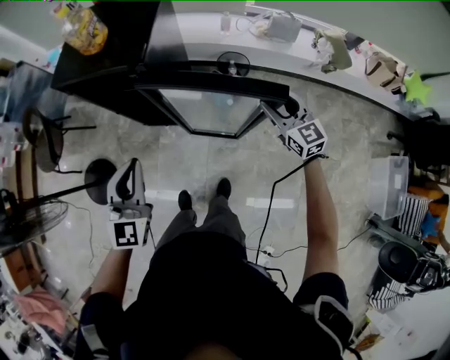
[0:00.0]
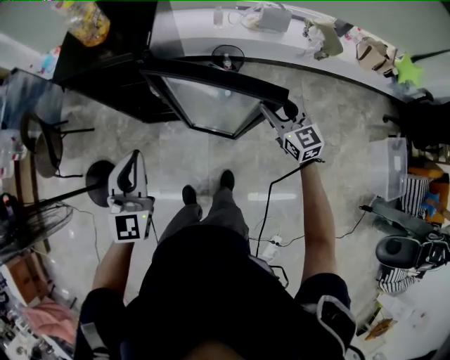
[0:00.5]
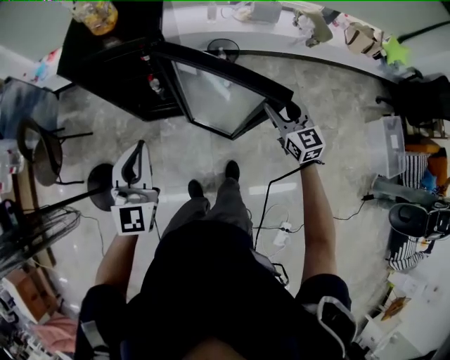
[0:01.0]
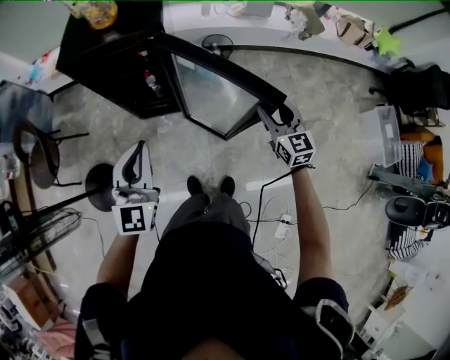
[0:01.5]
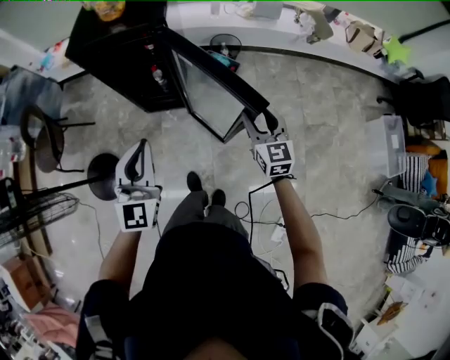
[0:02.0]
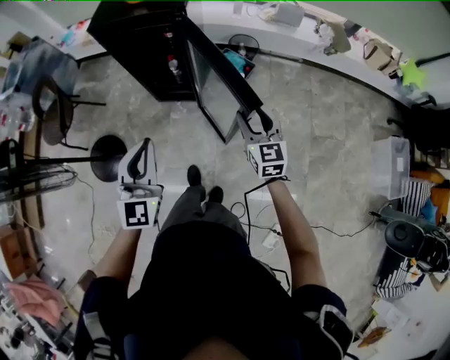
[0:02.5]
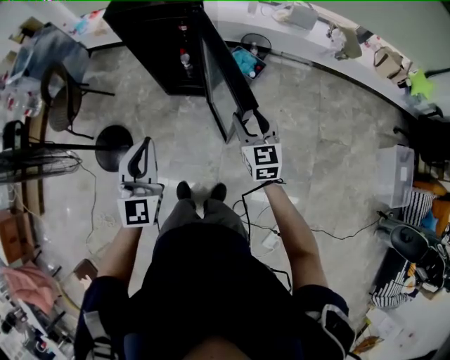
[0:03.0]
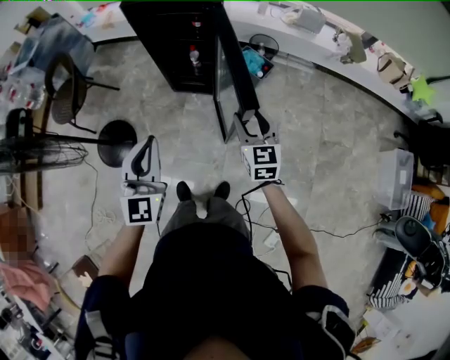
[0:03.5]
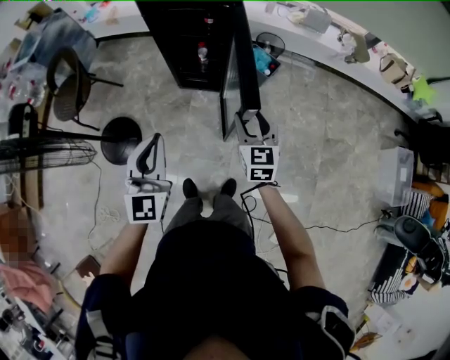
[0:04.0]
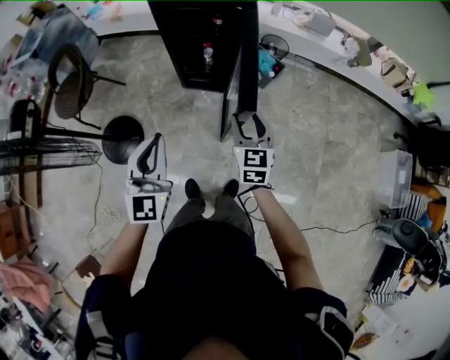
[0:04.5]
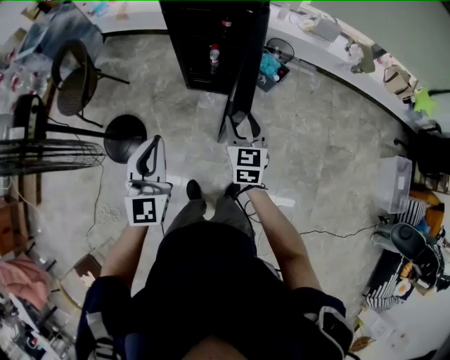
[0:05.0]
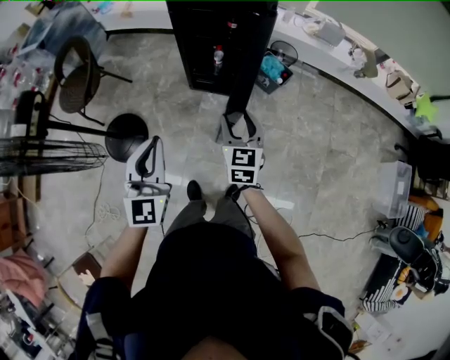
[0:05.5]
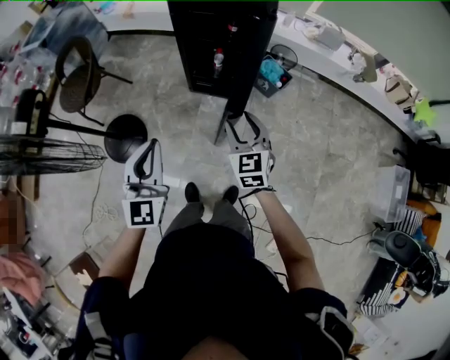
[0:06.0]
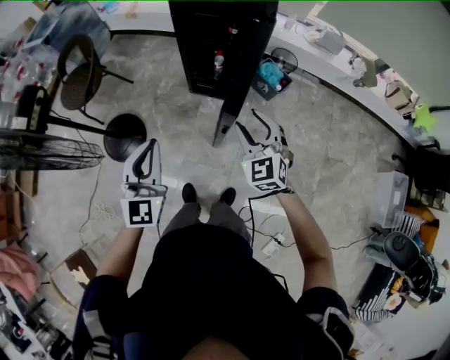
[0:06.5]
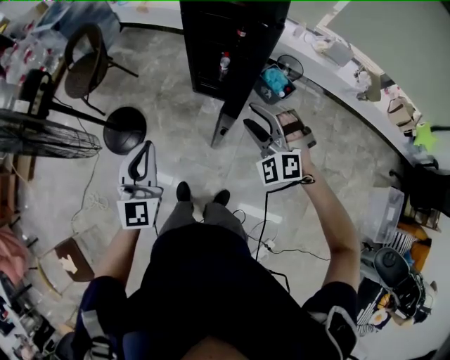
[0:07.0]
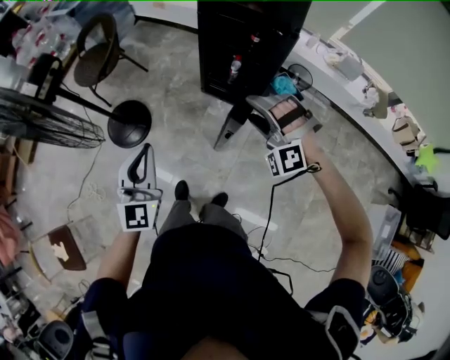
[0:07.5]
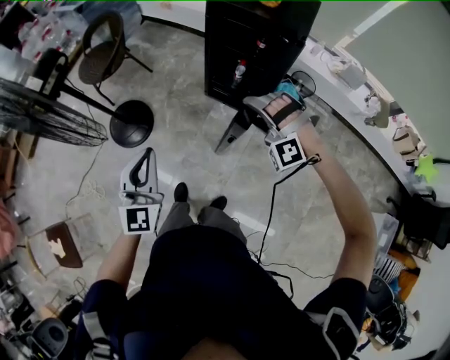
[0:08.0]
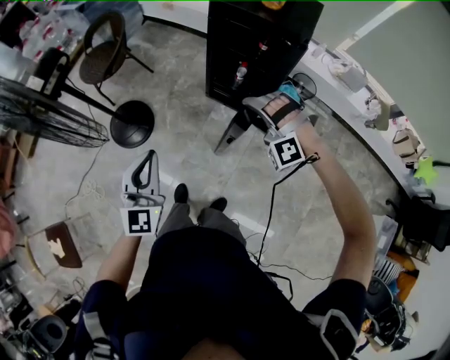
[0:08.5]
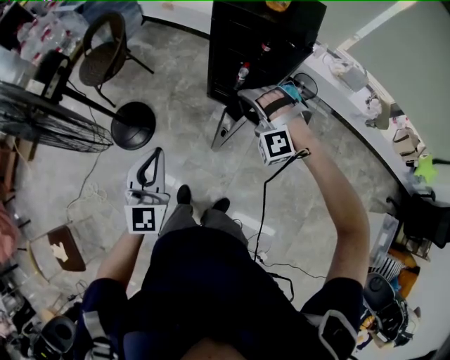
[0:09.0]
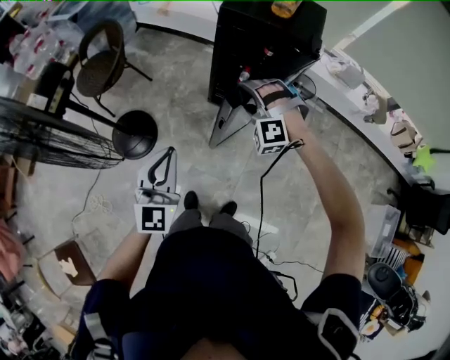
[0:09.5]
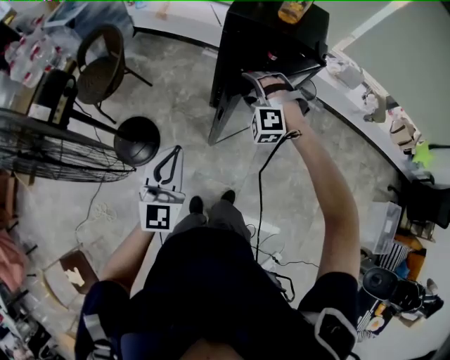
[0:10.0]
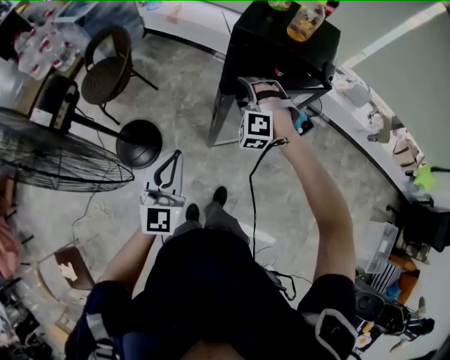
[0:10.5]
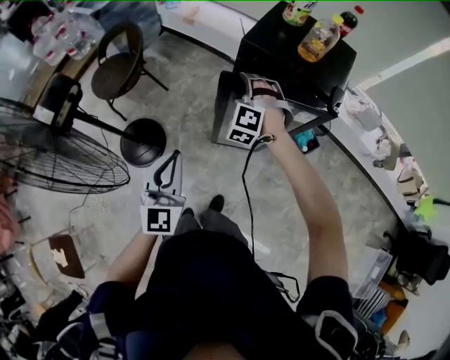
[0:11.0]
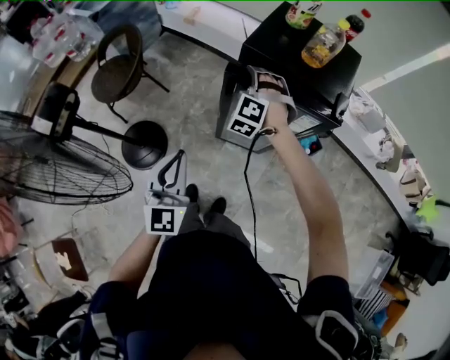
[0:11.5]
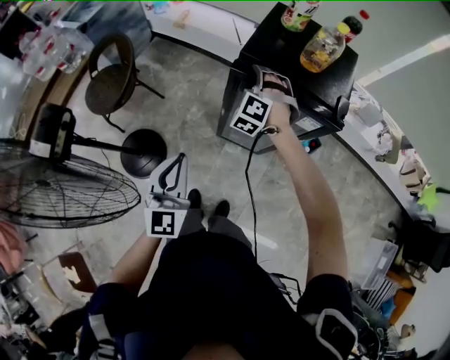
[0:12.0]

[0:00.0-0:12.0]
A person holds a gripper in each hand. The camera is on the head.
0:00.0 to 0:02.0: The left gripper heads backward and to the left, covering roughly 15 cm. The right gripper is displaced backward and to the left by about 25 cm, and rotates roughly 20 degrees.
0:02.0 to 0:04.0: The right gripper travels to the left by about 20 cm, while the left gripper goes about 20 cm to the left and backward.
0:04.0 to 0:06.0: Both grippers travel together to the left, roughly 10 cm.
0:06.0 to 0:08.0: The right gripper rotates around the line of its fingers by roughly 100 degrees, counterclockwise from behind, and opens.
0:08.0 to 0:10.0: The right gripper travels forward and to the left by approximately 20 cm, and changes its angle by approximately 20 degrees; the left gripper shifts roughly 15 cm forward and to the left.
0:10.0 to 0:12.0: Both grippers travel together forward, approximately 20 cm. The right gripper rotates roughly 20 degrees.

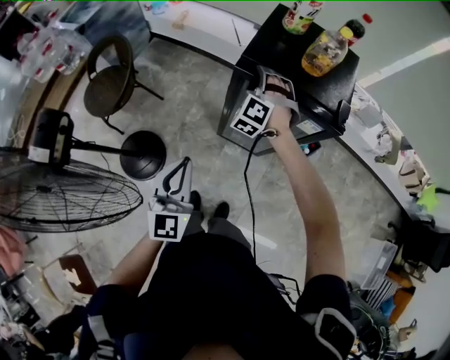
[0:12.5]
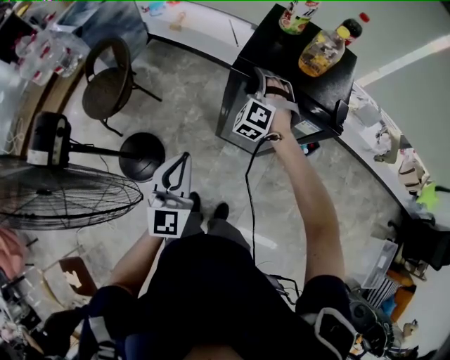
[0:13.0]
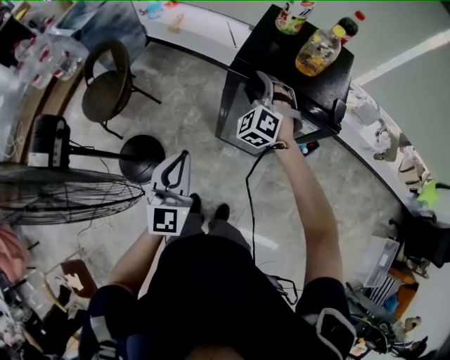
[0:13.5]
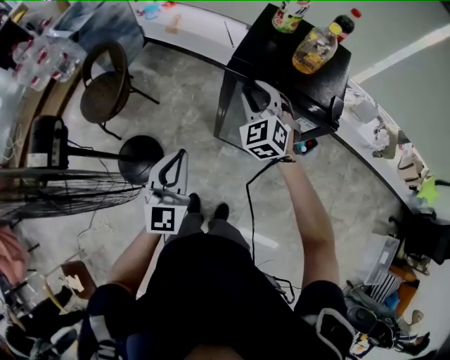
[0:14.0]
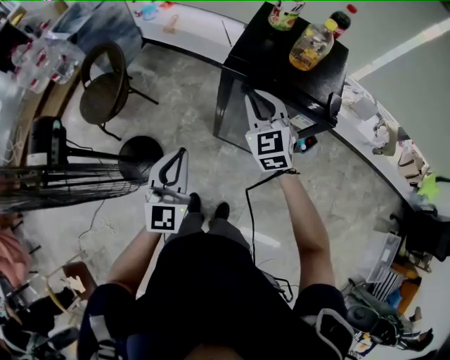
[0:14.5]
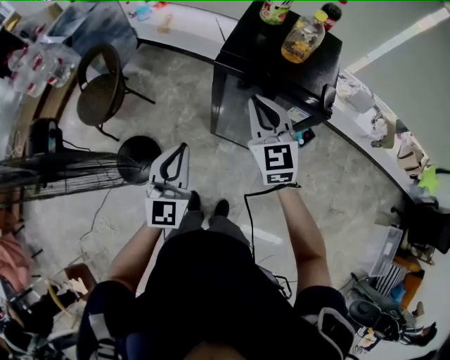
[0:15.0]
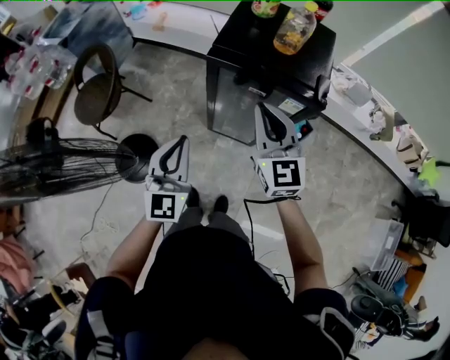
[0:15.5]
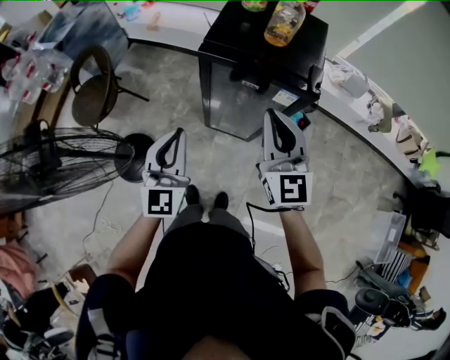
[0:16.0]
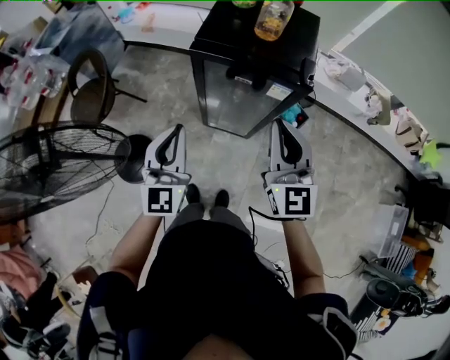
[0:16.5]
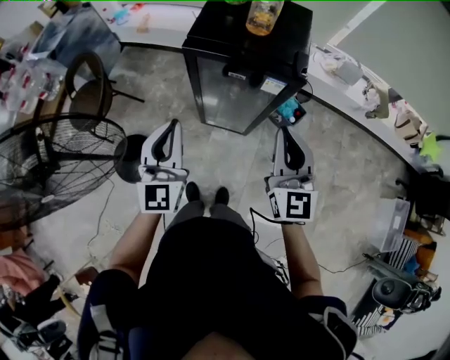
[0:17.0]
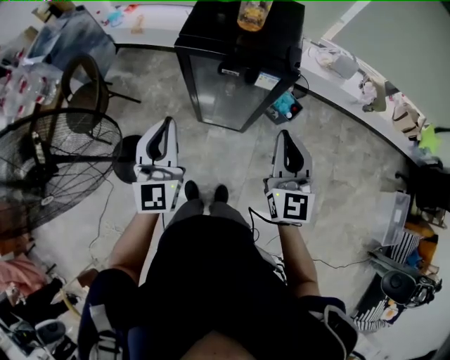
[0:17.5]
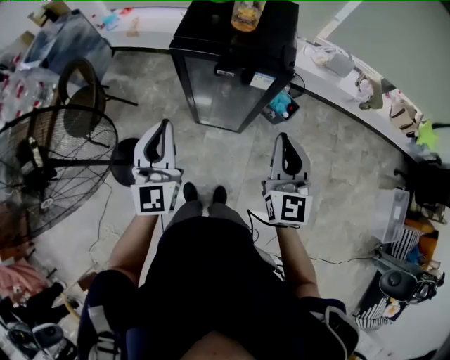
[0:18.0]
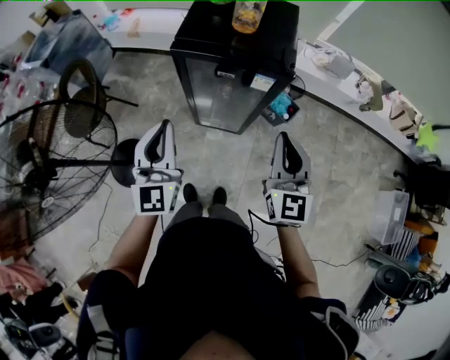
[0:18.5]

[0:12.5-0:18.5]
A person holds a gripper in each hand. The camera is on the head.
0:12.5 to 0:14.5: The right gripper moves backward and upward, about 15 cm, twists about 40 degrees clockwise, seen from behind, and closes up.
0:14.5 to 0:16.5: The right gripper moves backward, to the right and upward, roughly 25 cm, and rotates approximately 30 degrees, while the left gripper shifts approximately 5 cm to the right.
0:16.5 to 0:18.5: The right gripper shifts some 5 cm to the right.

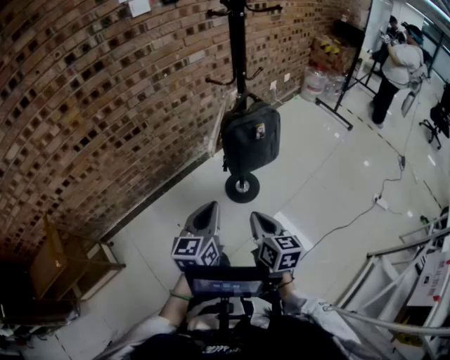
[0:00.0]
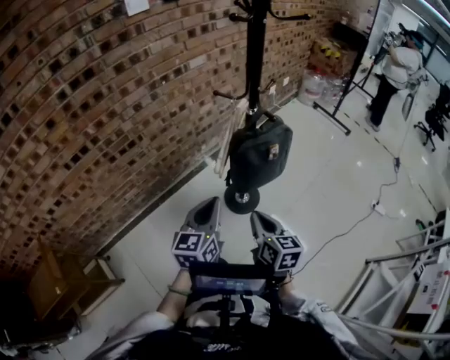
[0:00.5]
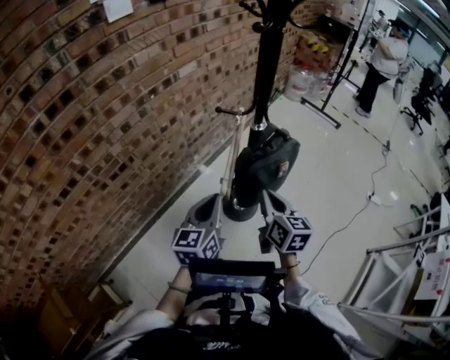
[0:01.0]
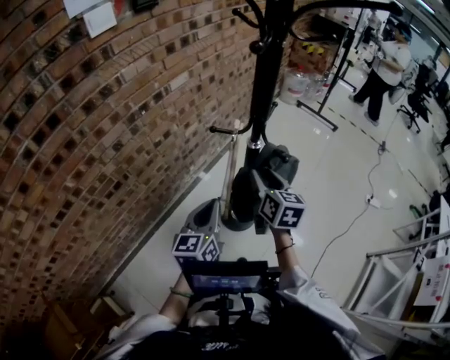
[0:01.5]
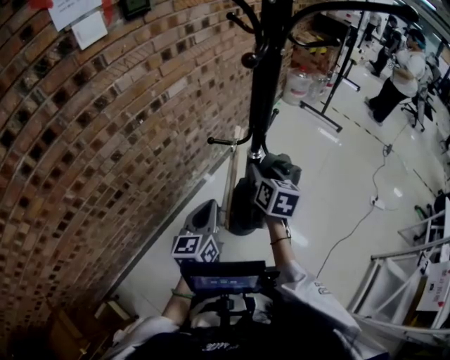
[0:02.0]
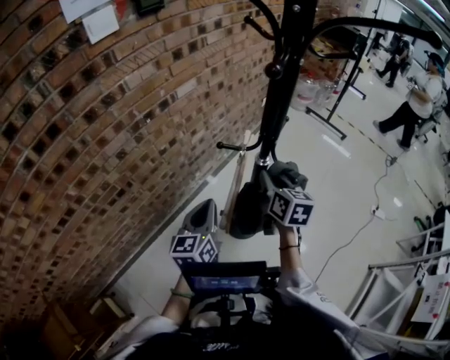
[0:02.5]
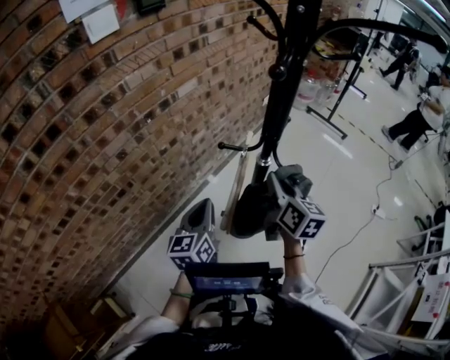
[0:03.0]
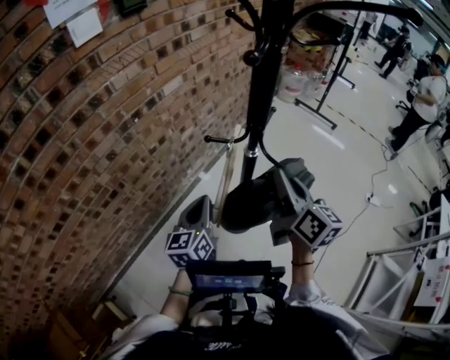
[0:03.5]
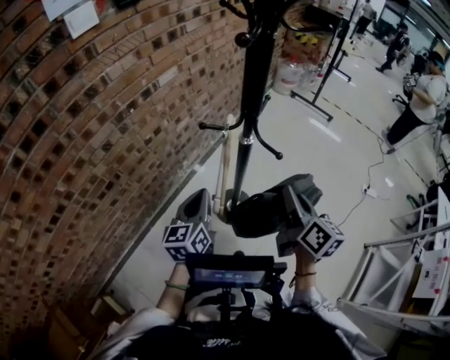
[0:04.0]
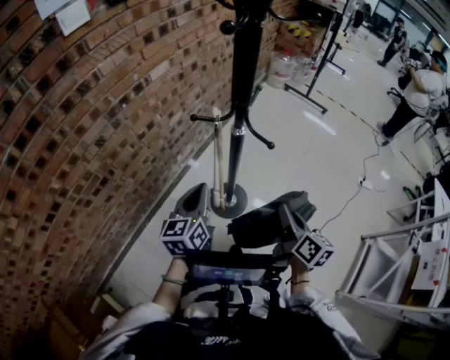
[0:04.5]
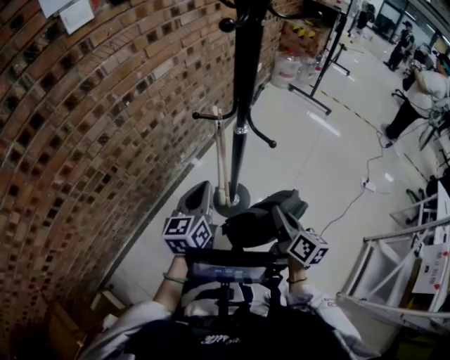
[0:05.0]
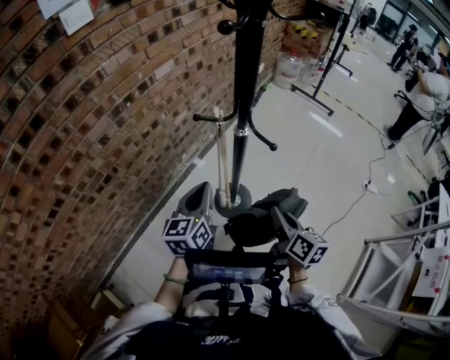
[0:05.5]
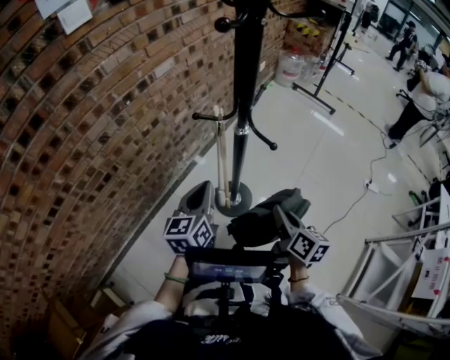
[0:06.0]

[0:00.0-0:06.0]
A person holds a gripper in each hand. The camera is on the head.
0:00.0 to 0:02.0: The two grippers go approximately 35 cm forward. The right gripper turns by approximately 20 degrees, and opens its fingers.
0:02.0 to 0:04.0: The right gripper shifts some 15 cm backward and to the right, rotates some 20 degrees, and closes up.
0:04.0 to 0:06.0: The right gripper heads downward, covering roughly 10 cm.

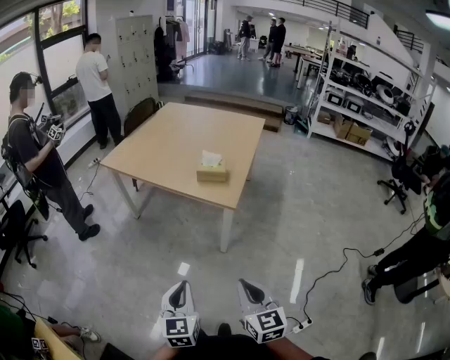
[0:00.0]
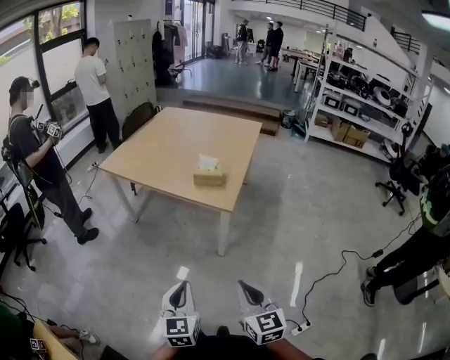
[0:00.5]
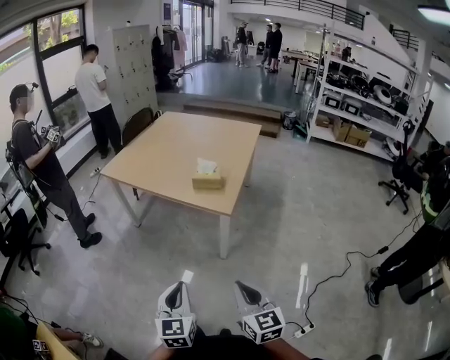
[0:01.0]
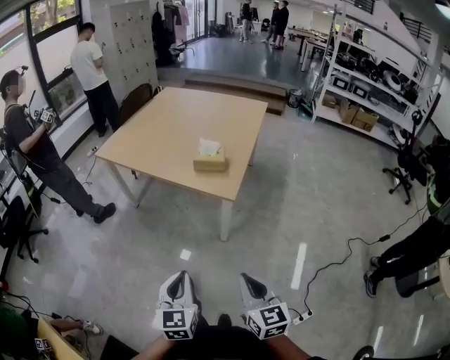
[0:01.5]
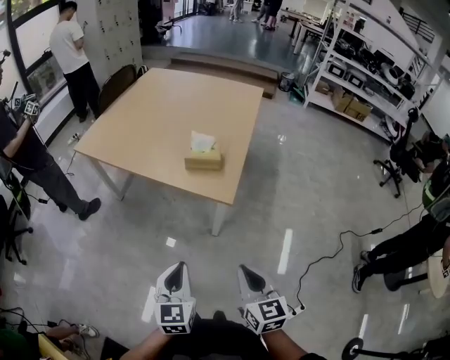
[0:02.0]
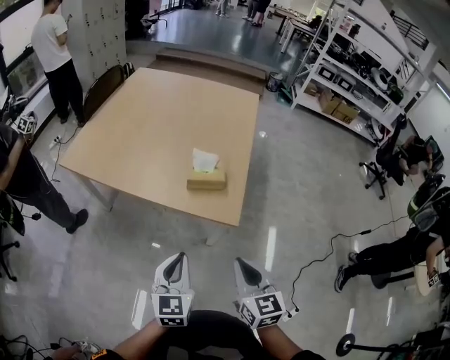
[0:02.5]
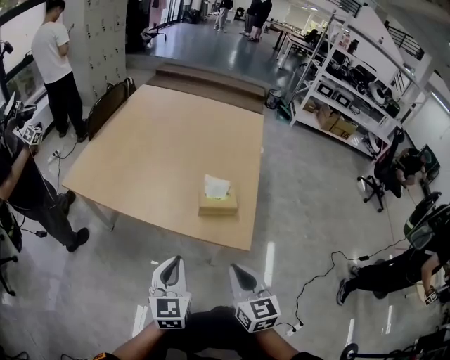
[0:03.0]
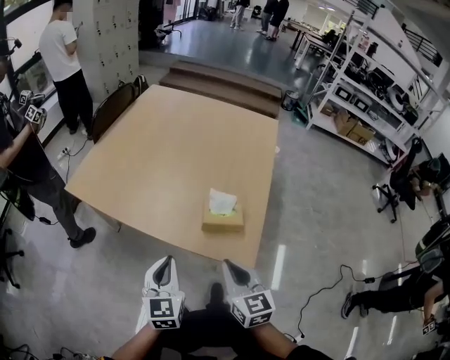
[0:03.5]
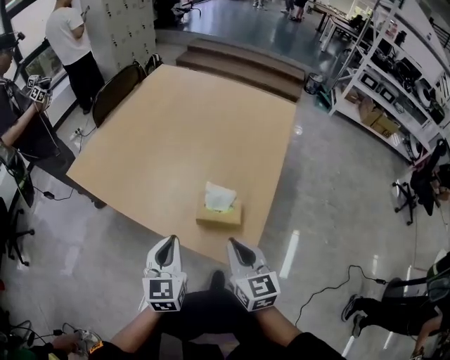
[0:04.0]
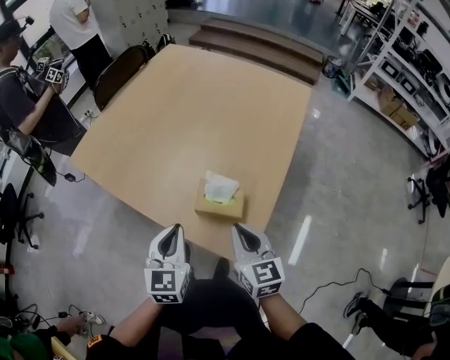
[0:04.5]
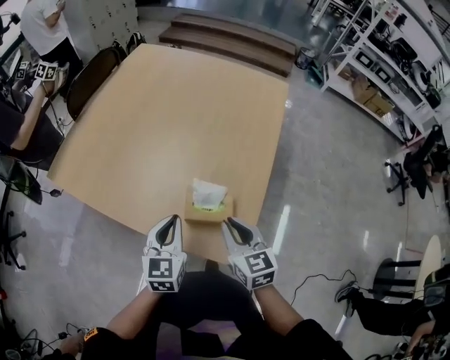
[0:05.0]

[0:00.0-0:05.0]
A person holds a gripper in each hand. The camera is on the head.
0:00.0 to 0:02.5: The two grippers go approximately 25 cm forward.
0:02.5 to 0:05.0: Both grippers travel together forward, some 30 cm.
